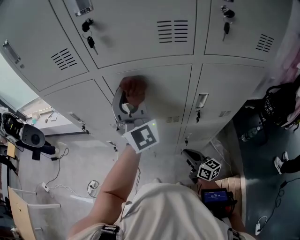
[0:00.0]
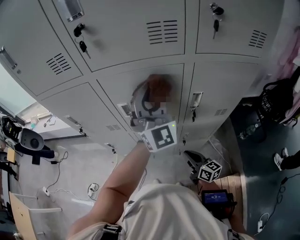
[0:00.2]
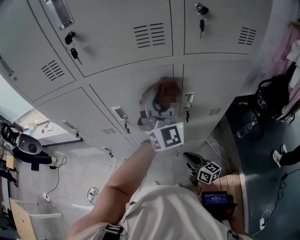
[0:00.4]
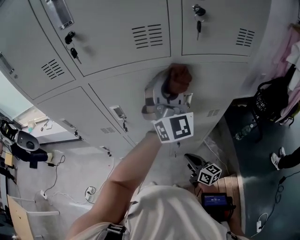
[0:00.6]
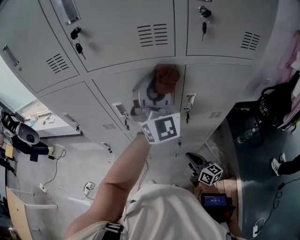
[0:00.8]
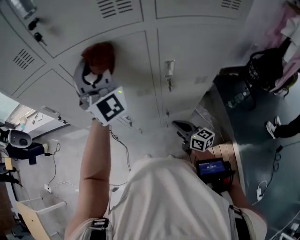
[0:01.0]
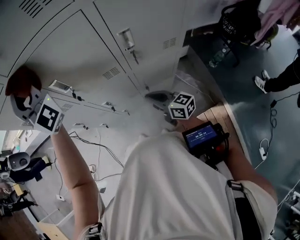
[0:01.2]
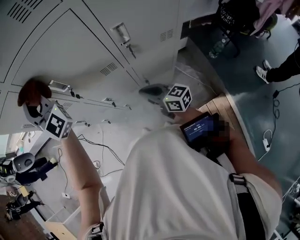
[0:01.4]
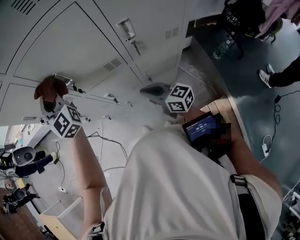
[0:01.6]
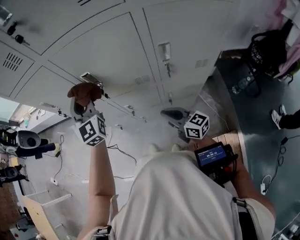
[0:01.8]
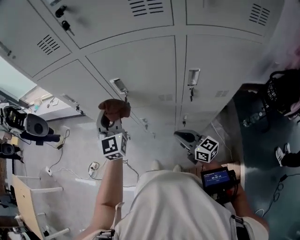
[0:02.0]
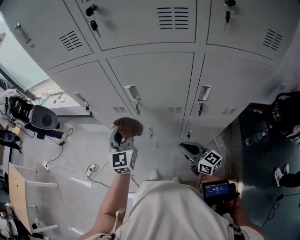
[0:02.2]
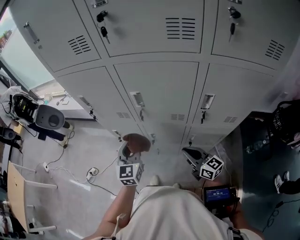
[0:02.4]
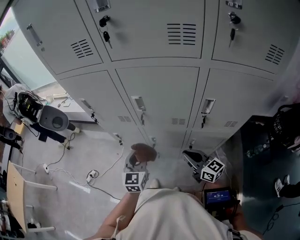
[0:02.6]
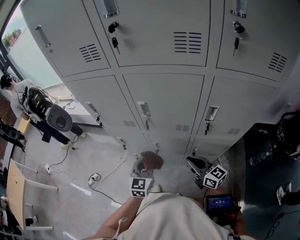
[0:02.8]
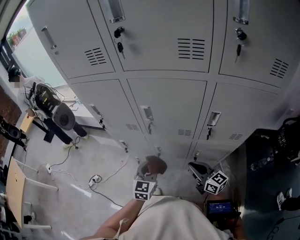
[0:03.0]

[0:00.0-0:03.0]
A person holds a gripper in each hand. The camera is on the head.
0:00.0 to 0:01.6: The left gripper heads downward, covering some 10 cm, and goes to the right and returns, some 20 cm each way.
0:01.6 to 0:03.0: The left gripper goes roughly 25 cm downward and backward, and turns by approximately 40 degrees.

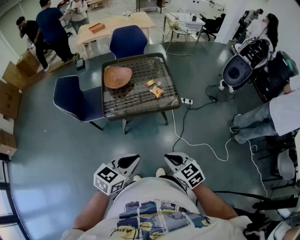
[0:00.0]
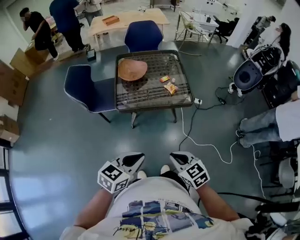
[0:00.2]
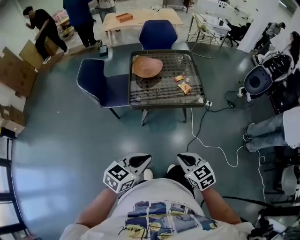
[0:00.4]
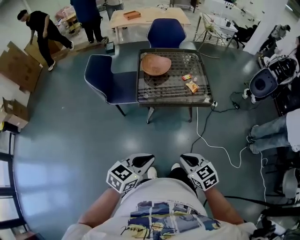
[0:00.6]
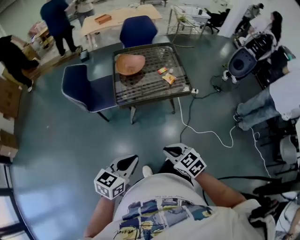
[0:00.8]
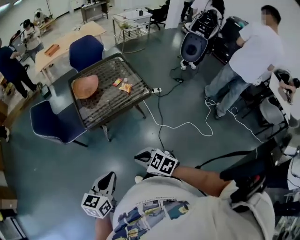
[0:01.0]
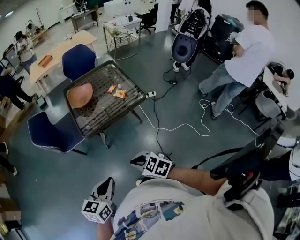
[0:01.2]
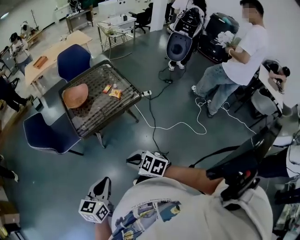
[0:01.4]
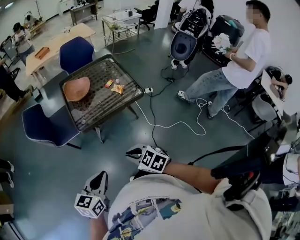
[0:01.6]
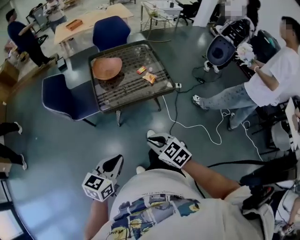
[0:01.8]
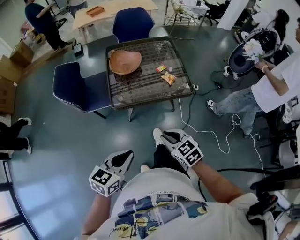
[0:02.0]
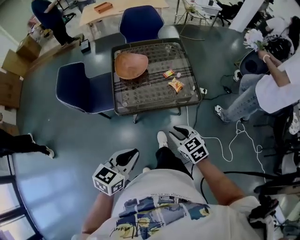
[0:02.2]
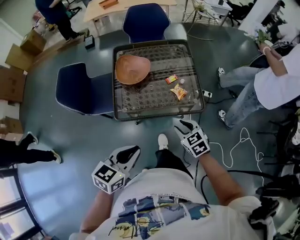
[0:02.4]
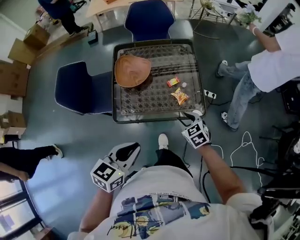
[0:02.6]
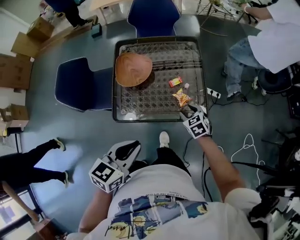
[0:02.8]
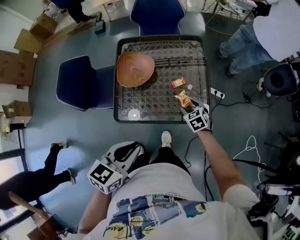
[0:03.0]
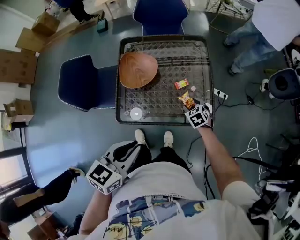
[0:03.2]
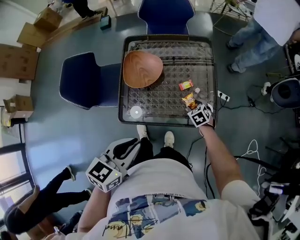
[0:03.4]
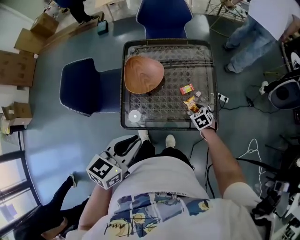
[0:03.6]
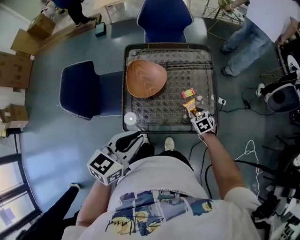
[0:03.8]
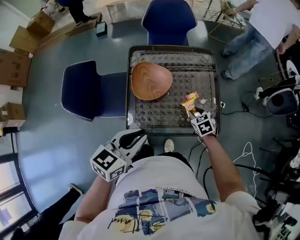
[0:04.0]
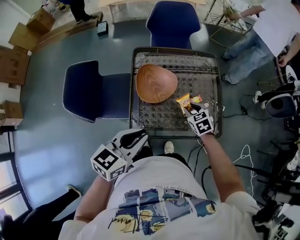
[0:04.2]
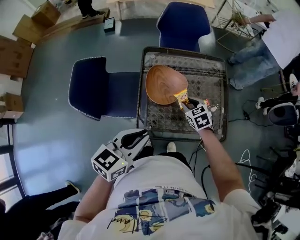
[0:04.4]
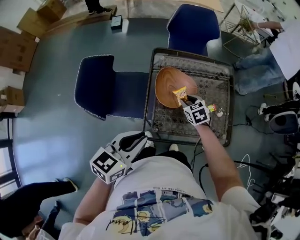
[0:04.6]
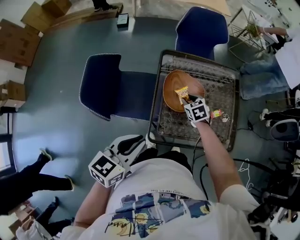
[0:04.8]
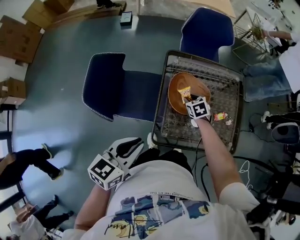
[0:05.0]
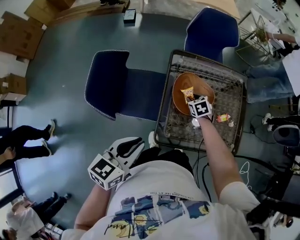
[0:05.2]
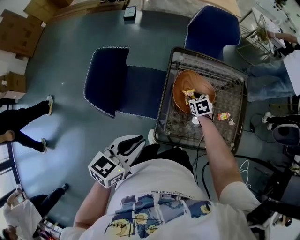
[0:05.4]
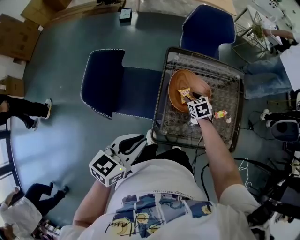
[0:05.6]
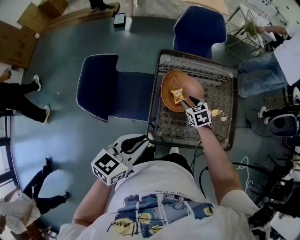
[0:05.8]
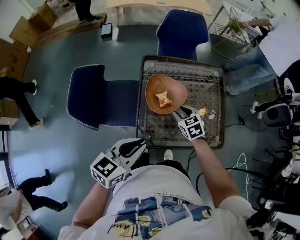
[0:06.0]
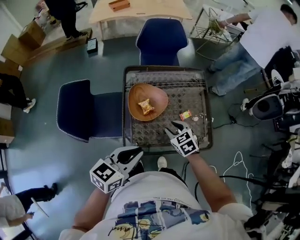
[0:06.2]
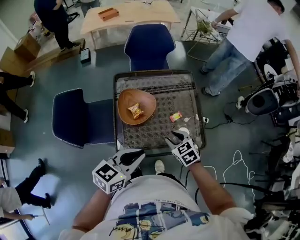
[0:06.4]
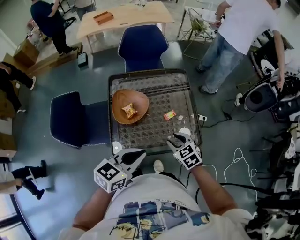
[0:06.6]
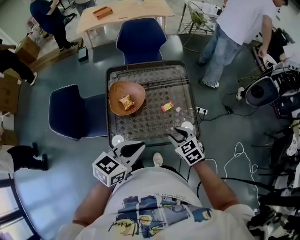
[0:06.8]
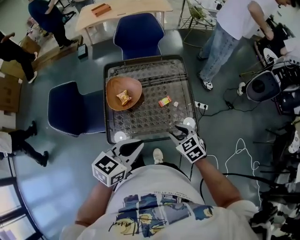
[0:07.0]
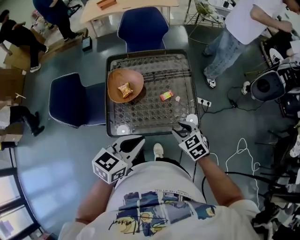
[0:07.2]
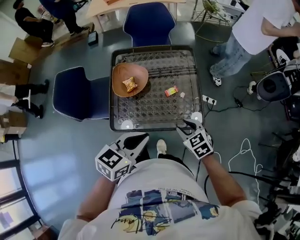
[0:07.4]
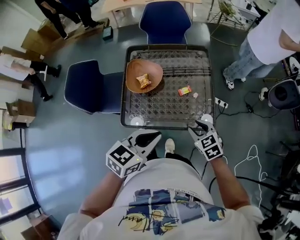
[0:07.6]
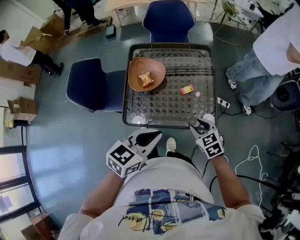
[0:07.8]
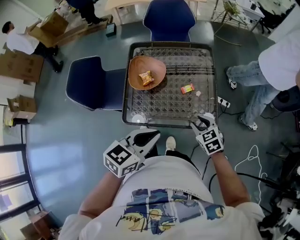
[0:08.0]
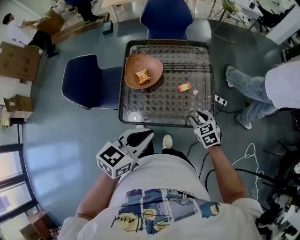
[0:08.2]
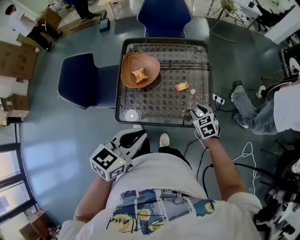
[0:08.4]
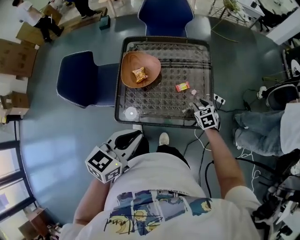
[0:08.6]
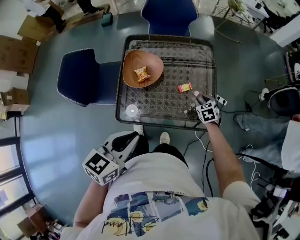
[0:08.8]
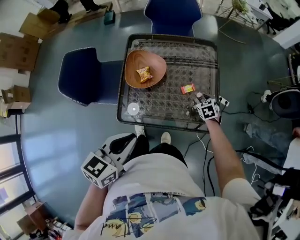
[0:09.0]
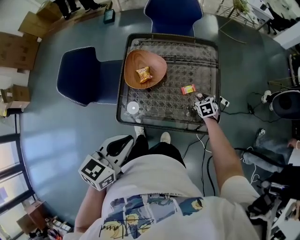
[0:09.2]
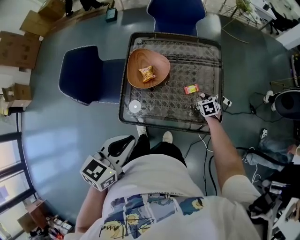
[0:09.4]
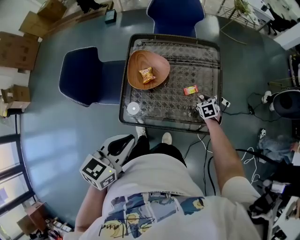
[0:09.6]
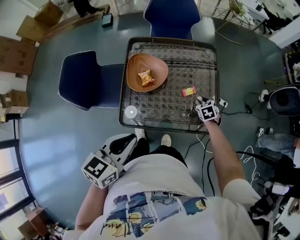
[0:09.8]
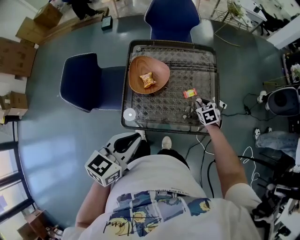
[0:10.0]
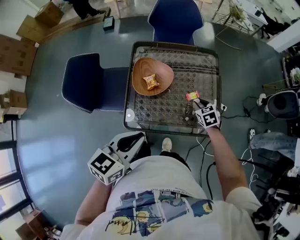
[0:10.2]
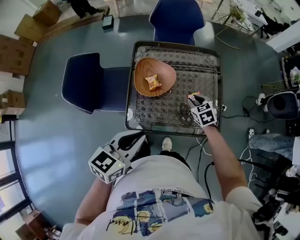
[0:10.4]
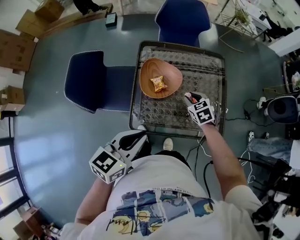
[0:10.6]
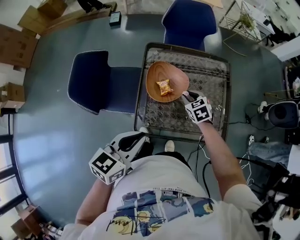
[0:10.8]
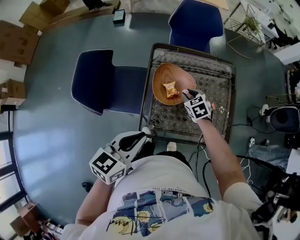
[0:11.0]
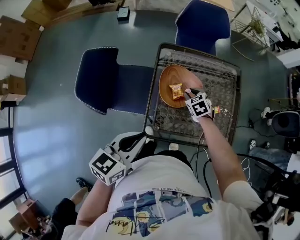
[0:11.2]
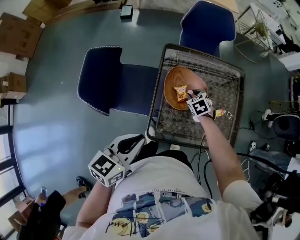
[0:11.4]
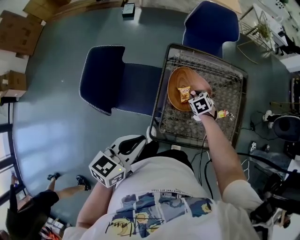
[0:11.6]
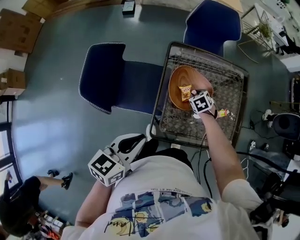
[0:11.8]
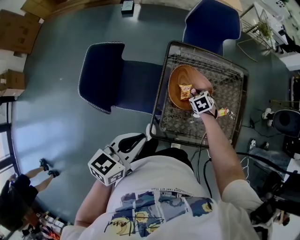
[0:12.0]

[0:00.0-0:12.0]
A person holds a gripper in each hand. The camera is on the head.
0:00.0 to 0:01.6: The right gripper heads to the left, covering roughly 15 cm, while the left gripper moves to the left and backward, about 15 cm.
0:01.6 to 0:03.0: The two grippers go approximately 40 cm forward. The right gripper opens.
0:03.0 to 0:04.4: The grippers both shift to the left and forward by roughly 20 cm. The right gripper closes up.
0:04.4 to 0:06.0: The right gripper travels to the left by about 5 cm; the left gripper travels to the left and back again, roughly 15 cm each way.
0:06.0 to 0:07.6: The left gripper shifts about 25 cm to the right. The right gripper travels to the right and backward by roughly 30 cm.
0:07.6 to 0:09.0: The left gripper heads to the left, covering approximately 10 cm. Meanwhile the right gripper shifts some 25 cm forward and downward.
0:09.0 to 0:10.4: The left gripper travels to the left by roughly 5 cm. The right gripper heads to the left and upward, covering roughly 15 cm.
0:10.4 to 0:12.0: The right gripper shifts about 25 cm to the left, downward and forward; the left gripper heads to the left, covering about 20 cm.

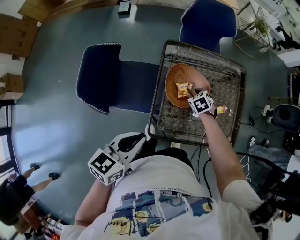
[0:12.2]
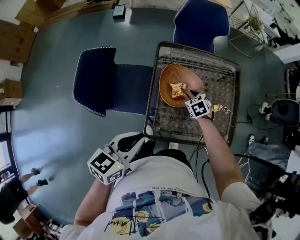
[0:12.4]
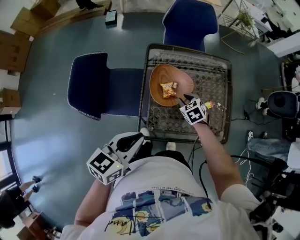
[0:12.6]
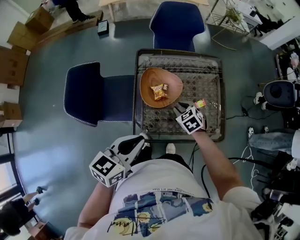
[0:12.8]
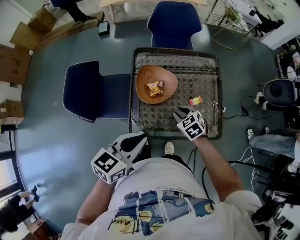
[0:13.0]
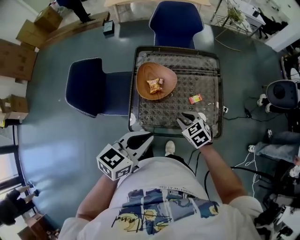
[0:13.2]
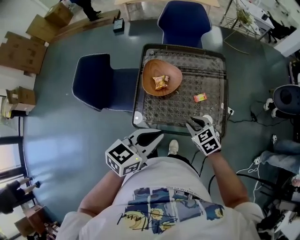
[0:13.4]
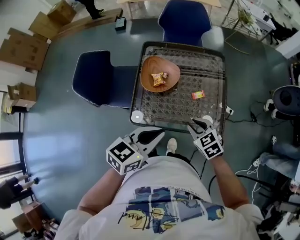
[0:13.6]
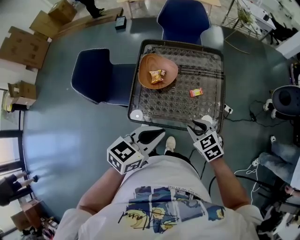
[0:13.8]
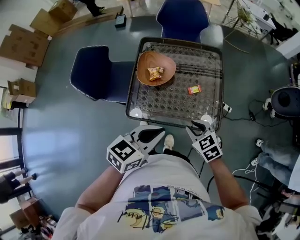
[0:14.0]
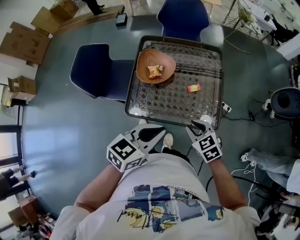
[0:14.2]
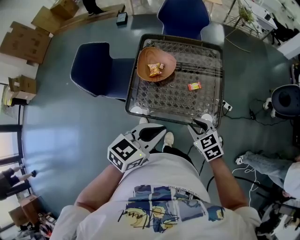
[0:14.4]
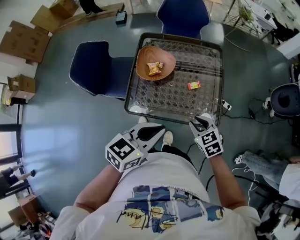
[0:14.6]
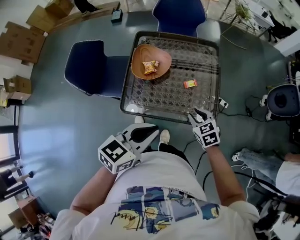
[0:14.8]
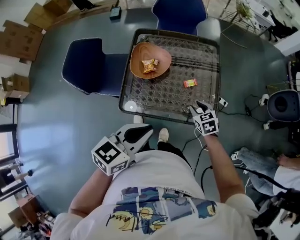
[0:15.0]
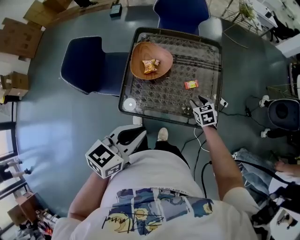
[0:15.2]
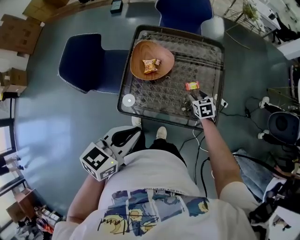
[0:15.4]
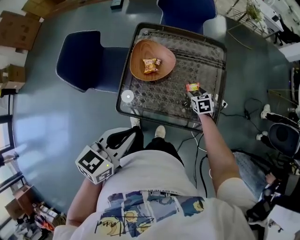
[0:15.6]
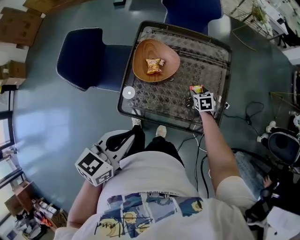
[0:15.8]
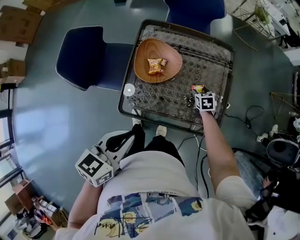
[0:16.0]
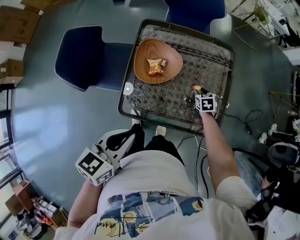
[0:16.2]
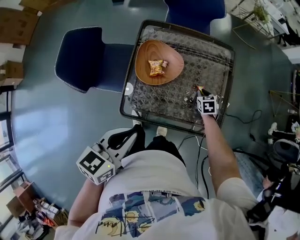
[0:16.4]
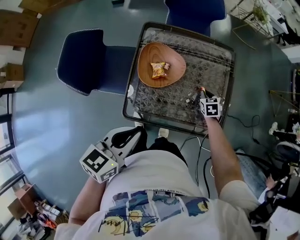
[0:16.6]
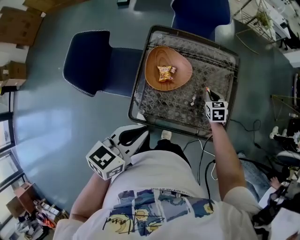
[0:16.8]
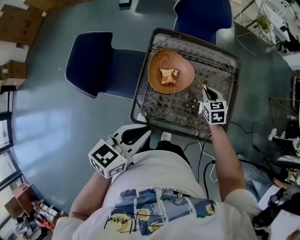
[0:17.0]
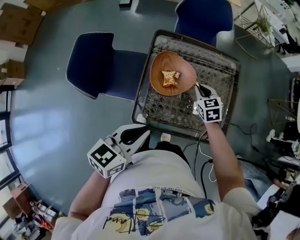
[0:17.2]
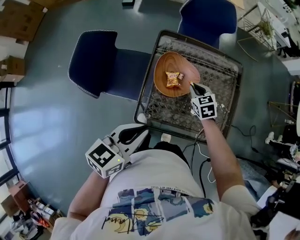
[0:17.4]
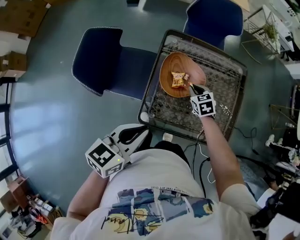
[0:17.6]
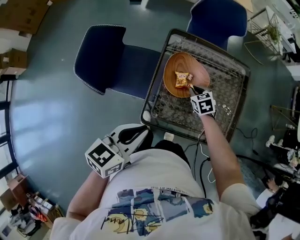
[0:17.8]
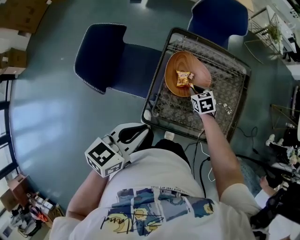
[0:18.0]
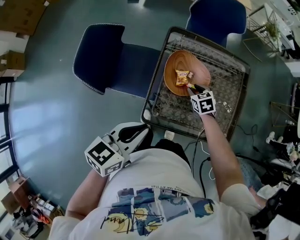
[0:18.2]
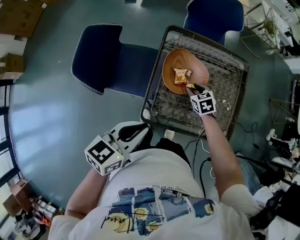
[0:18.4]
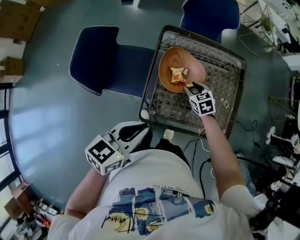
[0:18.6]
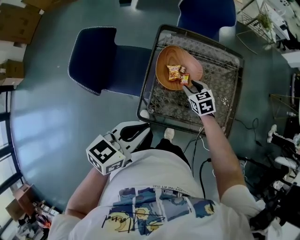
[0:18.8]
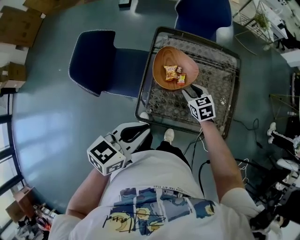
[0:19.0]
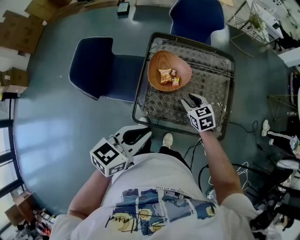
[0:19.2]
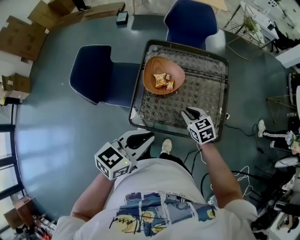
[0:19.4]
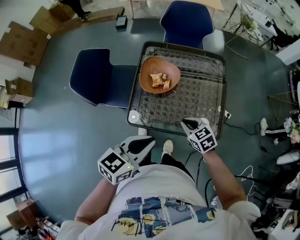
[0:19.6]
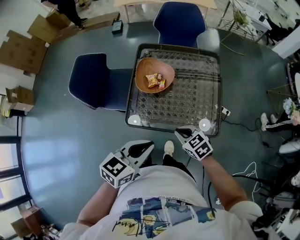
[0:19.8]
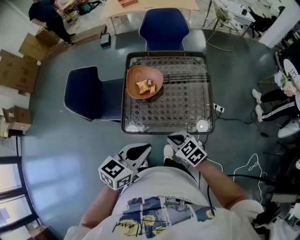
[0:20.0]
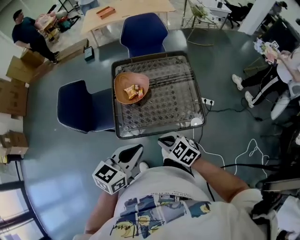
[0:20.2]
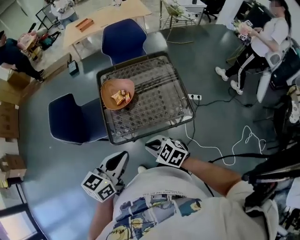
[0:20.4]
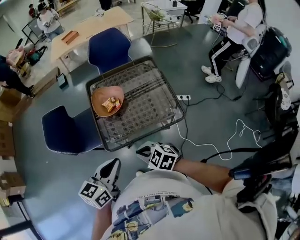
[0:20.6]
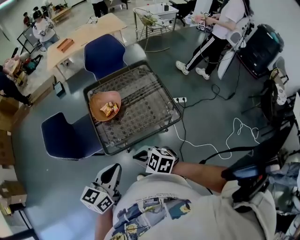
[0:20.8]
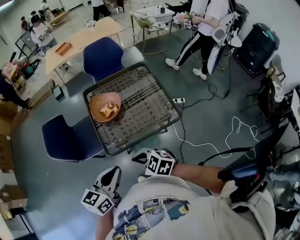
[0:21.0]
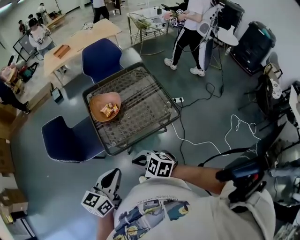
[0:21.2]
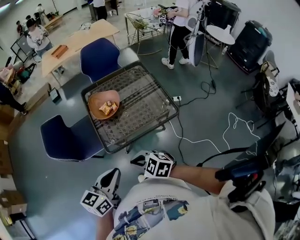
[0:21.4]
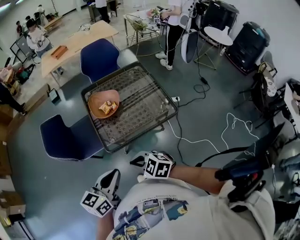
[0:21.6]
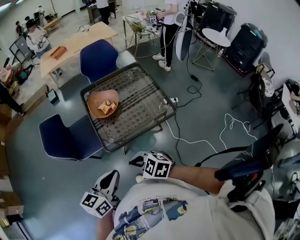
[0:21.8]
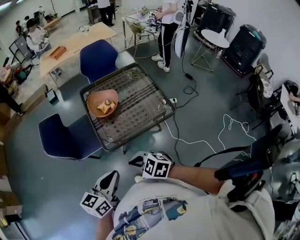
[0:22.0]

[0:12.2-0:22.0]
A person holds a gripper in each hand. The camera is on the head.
0:12.2 to 0:13.6: The right gripper travels backward, to the right and upward by about 35 cm, and turns by about 20 degrees; the left gripper goes approximately 25 cm to the right.
0:13.6 to 0:15.0: The right gripper travels downward and to the right by approximately 10 cm.
0:15.0 to 0:16.4: The left gripper shifts about 15 cm to the left and forward, while the right gripper shifts roughly 20 cm forward and downward, and opens, then closes again.
0:16.4 to 0:17.8: The left gripper shifts approximately 10 cm to the left, while the right gripper goes approximately 20 cm to the left.
0:17.8 to 0:19.2: The left gripper travels to the right by roughly 10 cm; the right gripper moves backward, upward and to the right, roughly 15 cm, and opens up.
0:19.2 to 0:20.6: The right gripper moves backward and upward, some 30 cm, and closes its fingers. The left gripper travels backward by roughly 10 cm.
0:20.6 to 0:22.0: Both grippers move to the left and backward, about 15 cm.
